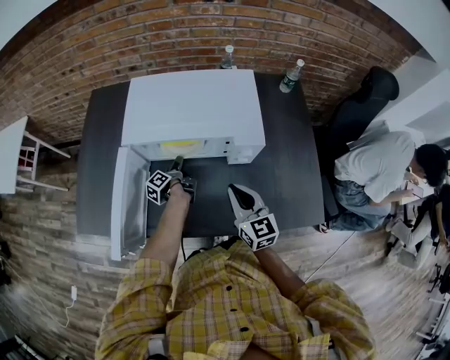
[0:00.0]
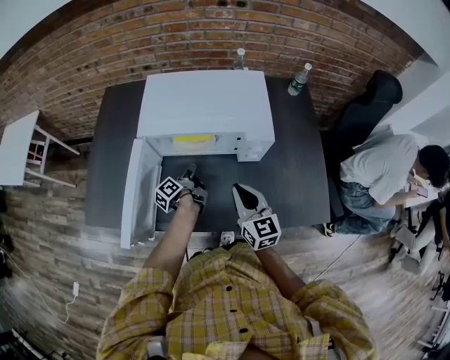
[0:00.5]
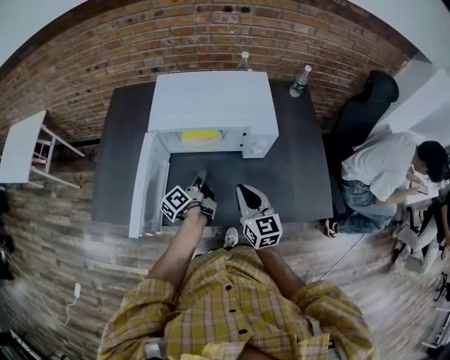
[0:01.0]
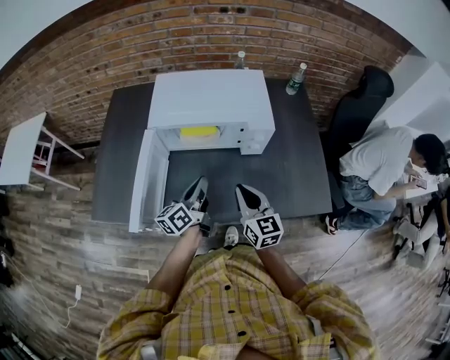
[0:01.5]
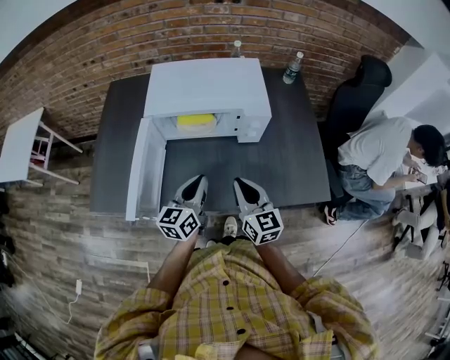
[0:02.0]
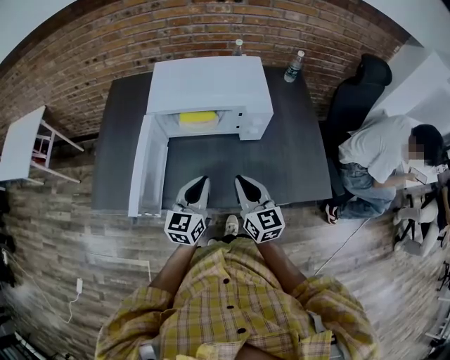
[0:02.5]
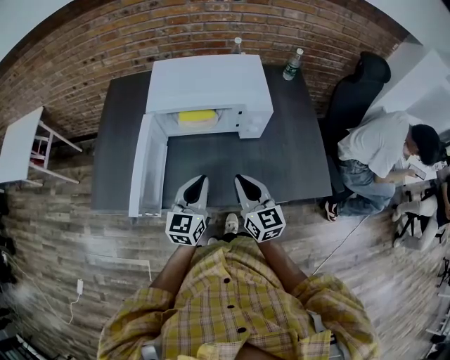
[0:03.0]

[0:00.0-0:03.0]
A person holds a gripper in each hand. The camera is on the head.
0:00.0 to 0:01.5: The right gripper ends up approximately 10 cm from where it was.

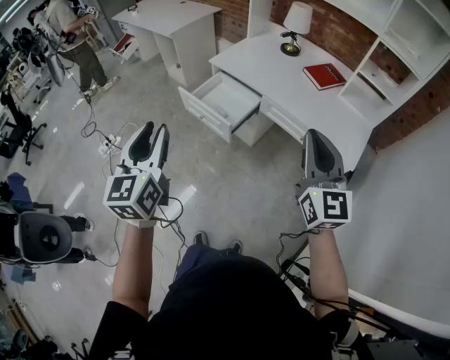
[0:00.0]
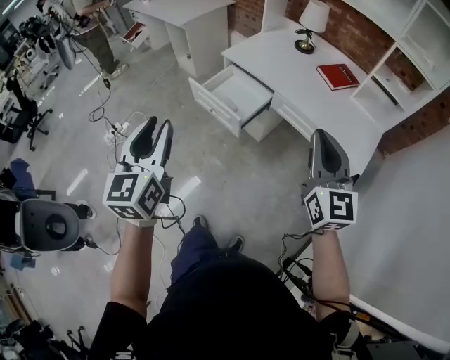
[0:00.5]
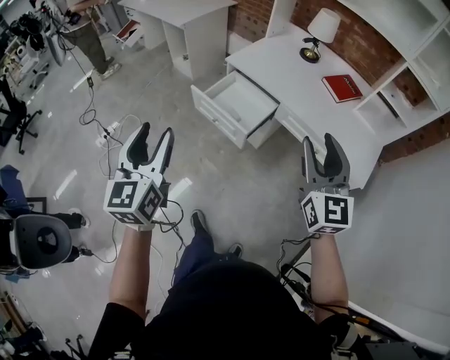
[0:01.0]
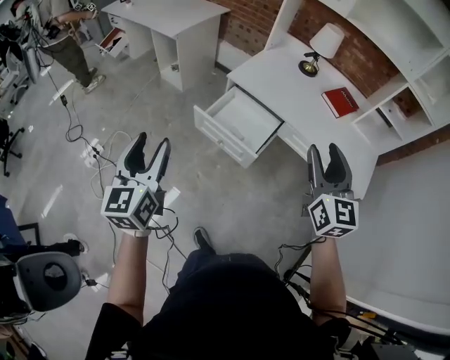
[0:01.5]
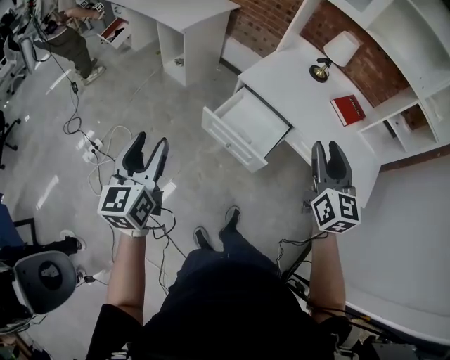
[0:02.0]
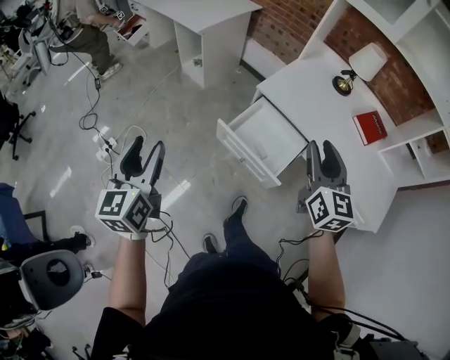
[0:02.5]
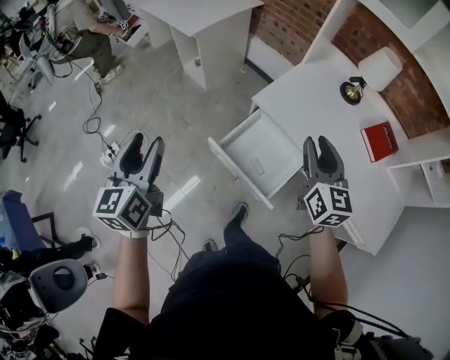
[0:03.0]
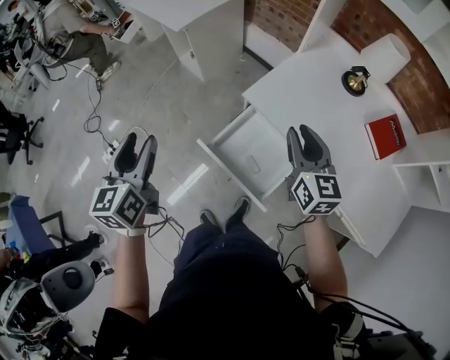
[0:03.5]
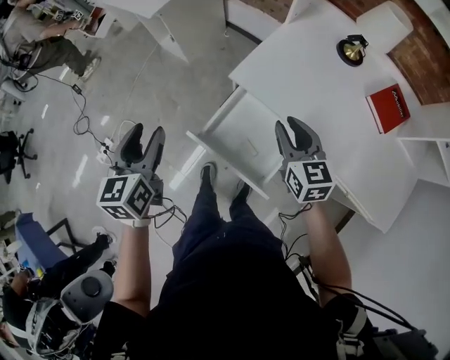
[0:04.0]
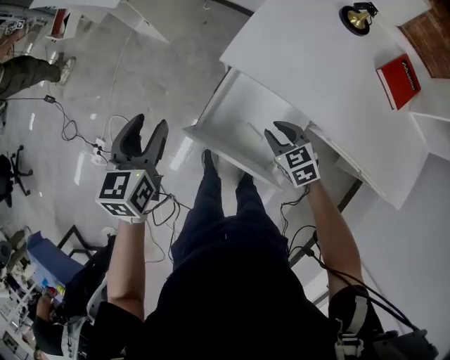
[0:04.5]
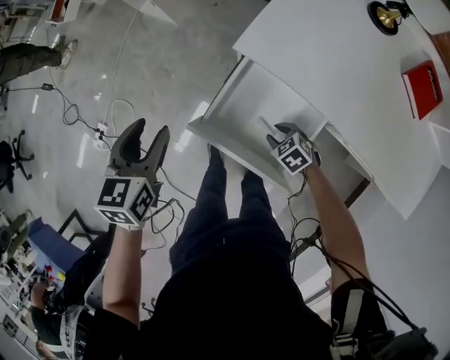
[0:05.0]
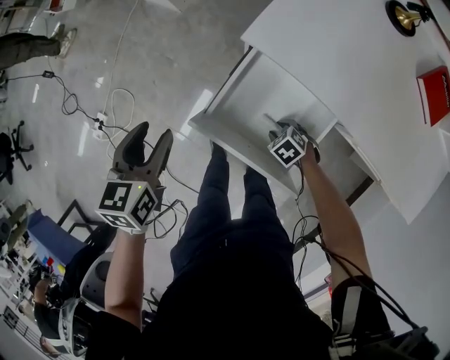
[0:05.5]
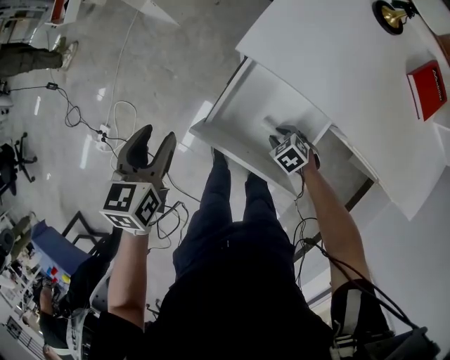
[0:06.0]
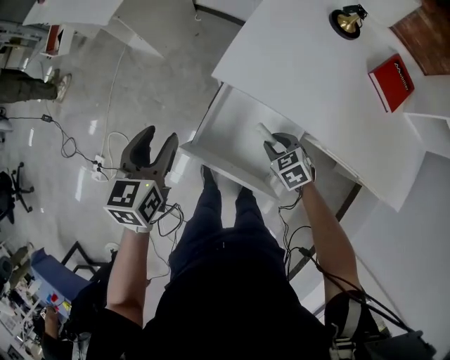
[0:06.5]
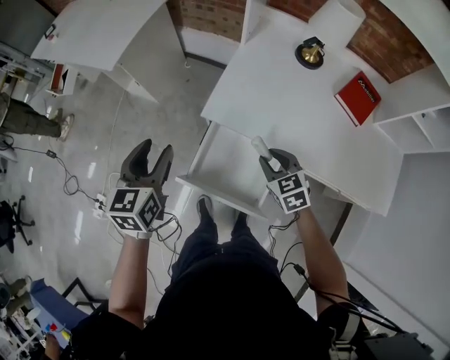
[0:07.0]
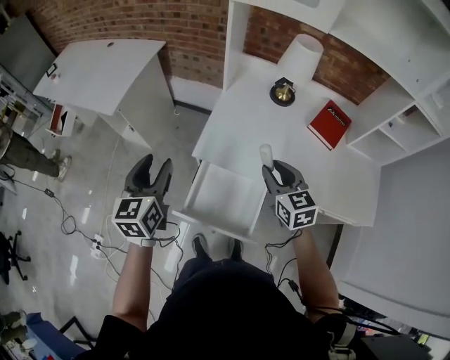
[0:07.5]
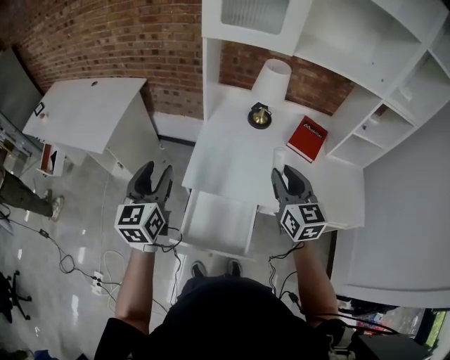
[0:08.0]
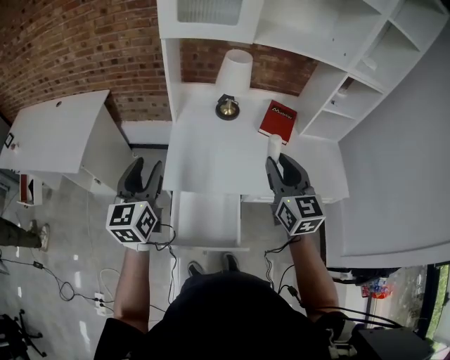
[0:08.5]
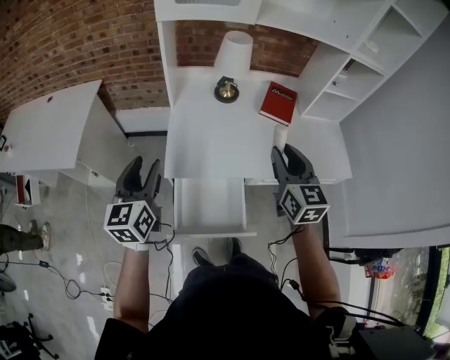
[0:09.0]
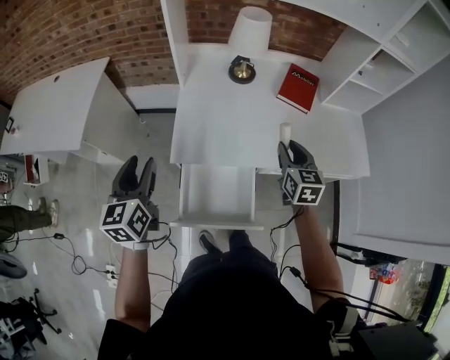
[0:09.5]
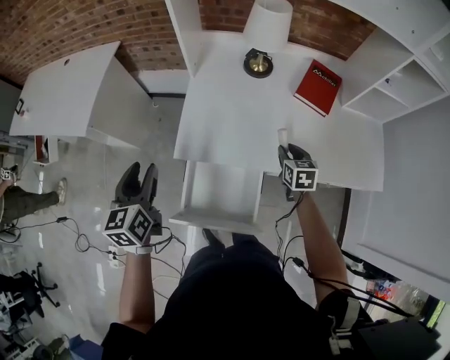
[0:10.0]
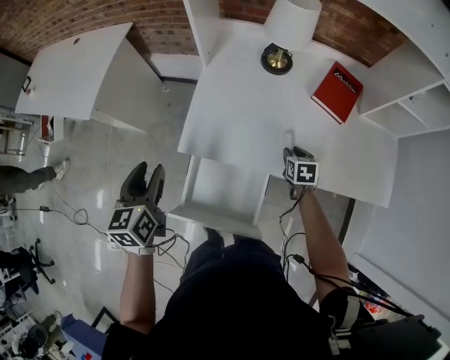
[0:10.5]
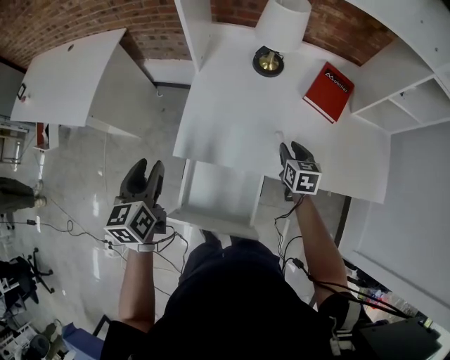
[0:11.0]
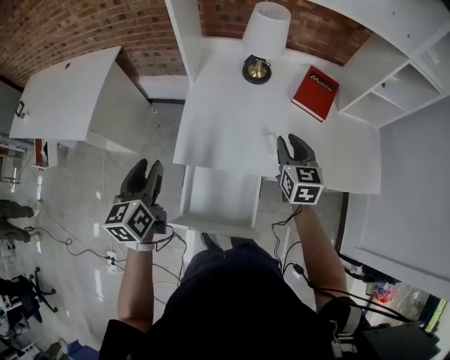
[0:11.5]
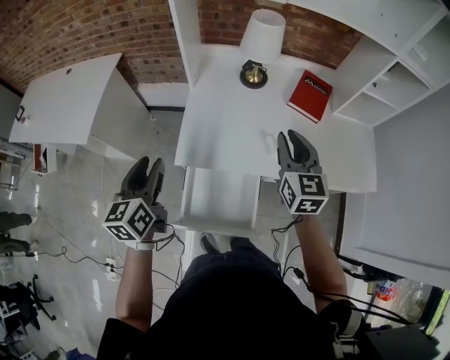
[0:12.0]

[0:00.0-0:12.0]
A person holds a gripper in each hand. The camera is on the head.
0:00.0 to 0:02.0: The left gripper goes approximately 35 cm to the left and forward, and opens its fingers; the right gripper is displaced forward and to the left by approximately 35 cm, and opens up.
0:02.0 to 0:04.0: The left gripper is displaced forward and to the right by roughly 35 cm, while the right gripper is displaced forward and downward by roughly 40 cm, and swivels some 30 degrees.
0:04.0 to 0:06.0: The left gripper goes approximately 15 cm downward, and changes its angle by approximately 20 degrees. The right gripper moves downward, roughly 35 cm, and tips its fingers downward by some 50 degrees.
0:06.0 to 0:08.0: The left gripper is displaced upward by roughly 30 cm, and angles its fingers upward, by roughly 30 degrees. The right gripper shifts approximately 60 cm upward, and tips its fingers upward by about 60 degrees.
0:08.0 to 0:10.0: The left gripper travels downward by roughly 10 cm, while the right gripper heads downward, covering about 30 cm, and points its fingers approximately 30 degrees further downward.
0:10.0 to 0:12.0: The right gripper is displaced upward by some 20 cm, and rotates some 30 degrees.

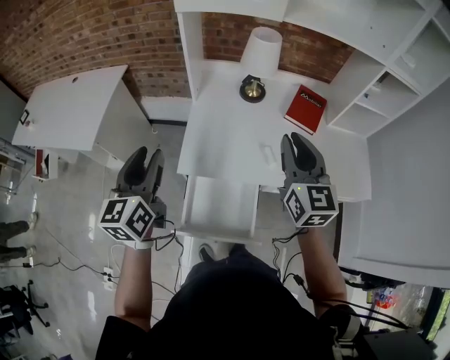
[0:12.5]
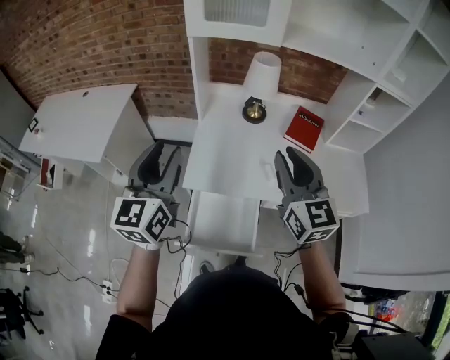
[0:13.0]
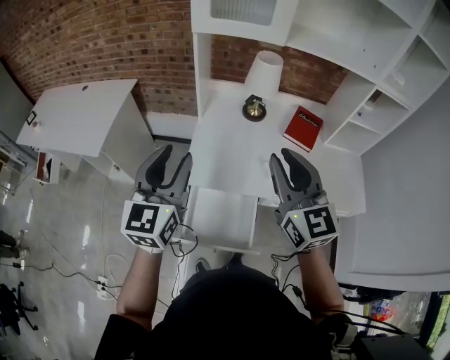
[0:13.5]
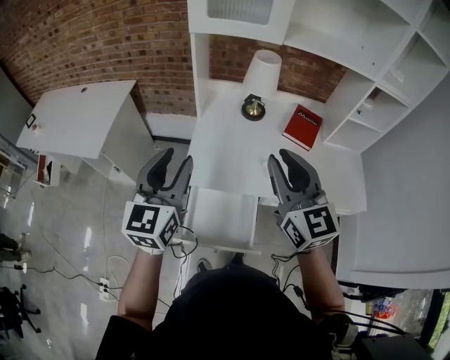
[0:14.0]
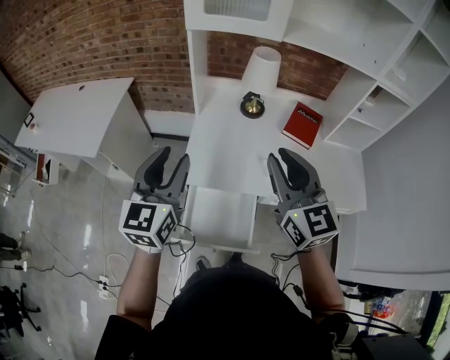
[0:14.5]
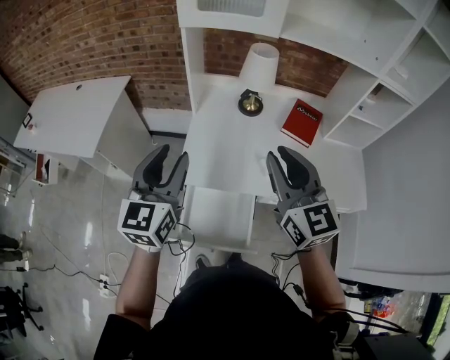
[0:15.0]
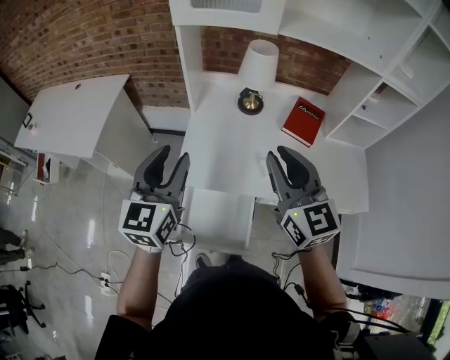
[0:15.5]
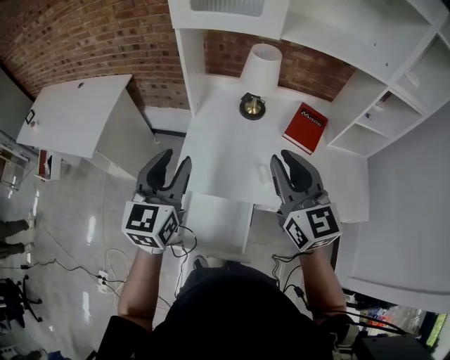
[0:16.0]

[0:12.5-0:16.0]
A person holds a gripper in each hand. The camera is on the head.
0:12.5 to 0:14.5: The right gripper heads upward, to the left and backward, covering some 10 cm, while the left gripper heads to the right, covering approximately 5 cm.
0:14.5 to 0:16.0: The left gripper changes place by approximately 5 cm. Meanwhile the right gripper moves forward, about 5 cm.

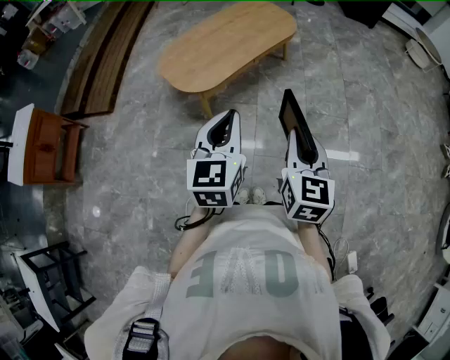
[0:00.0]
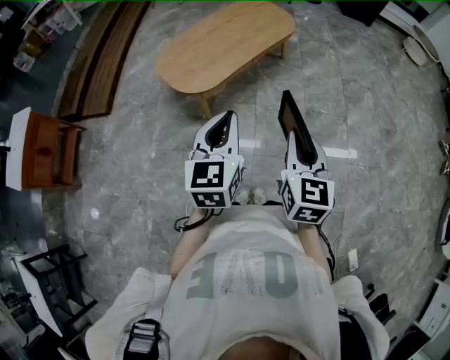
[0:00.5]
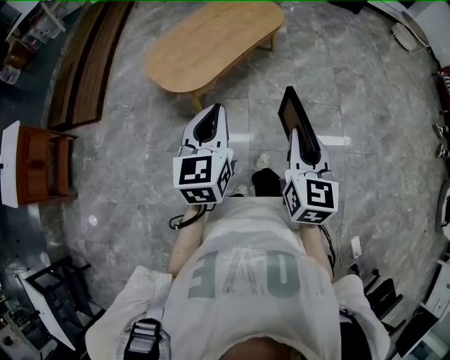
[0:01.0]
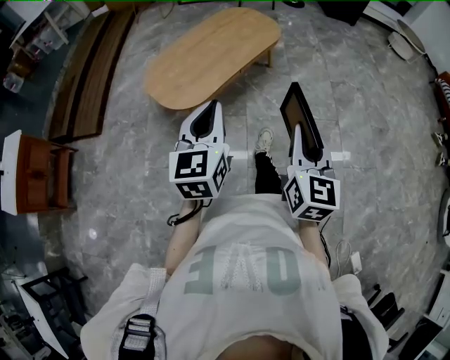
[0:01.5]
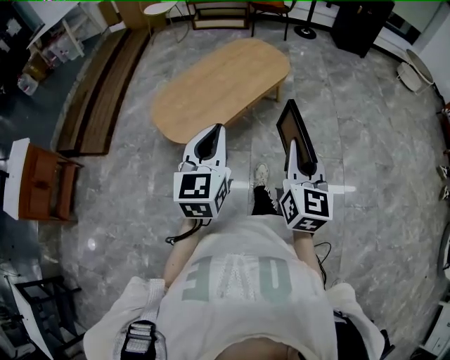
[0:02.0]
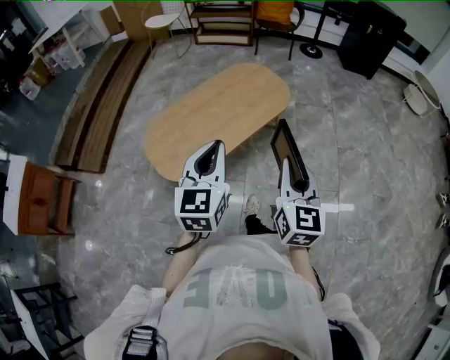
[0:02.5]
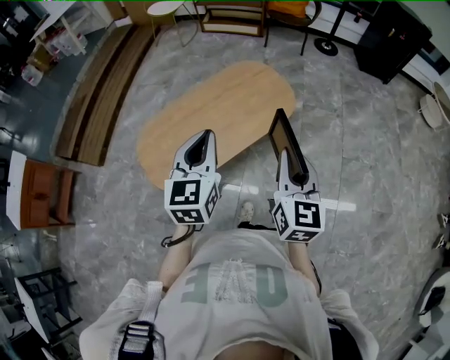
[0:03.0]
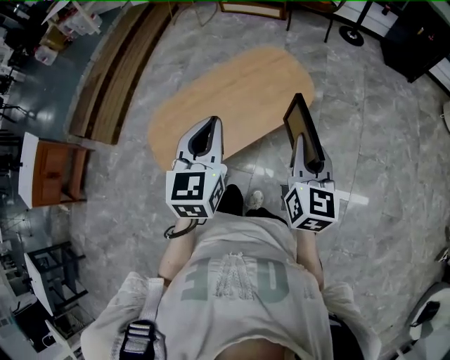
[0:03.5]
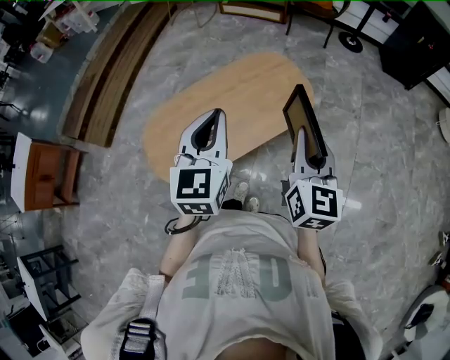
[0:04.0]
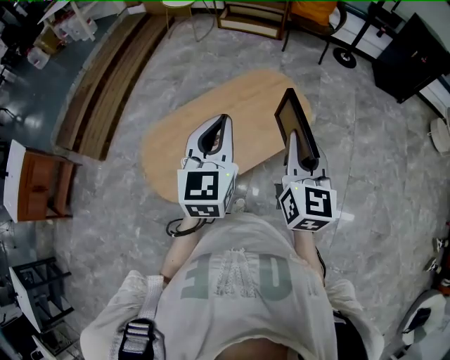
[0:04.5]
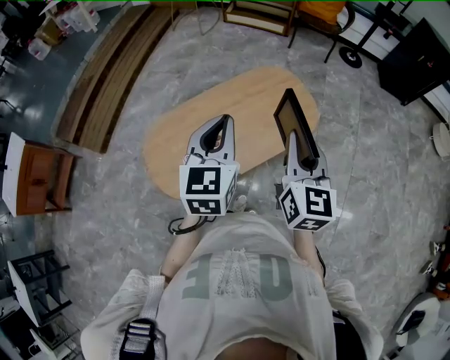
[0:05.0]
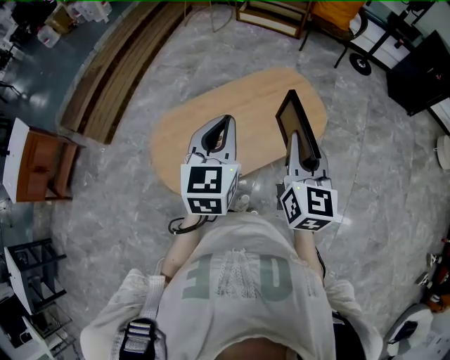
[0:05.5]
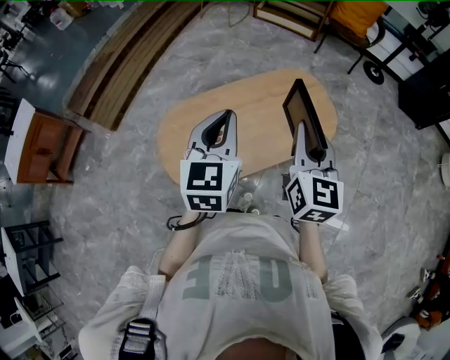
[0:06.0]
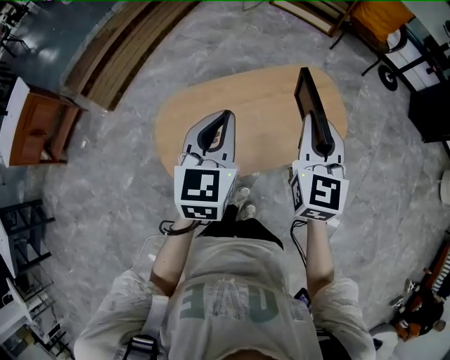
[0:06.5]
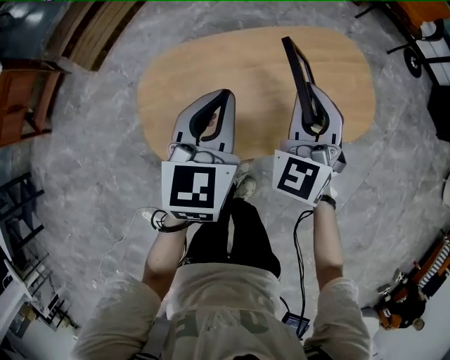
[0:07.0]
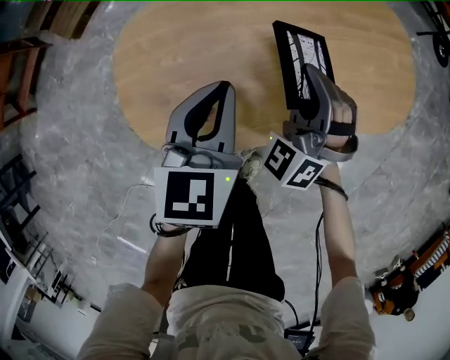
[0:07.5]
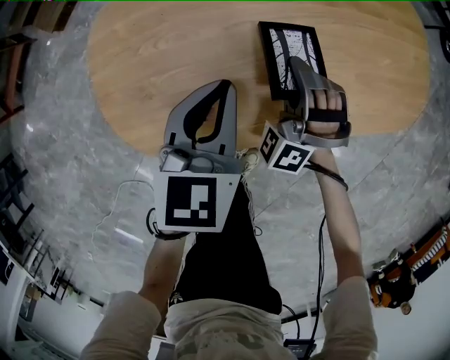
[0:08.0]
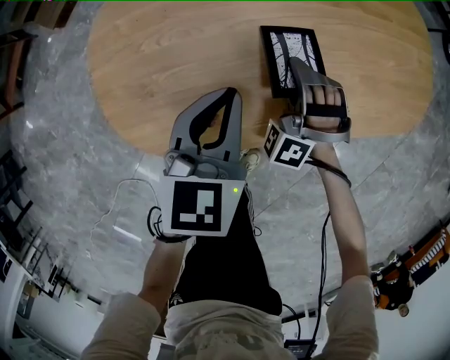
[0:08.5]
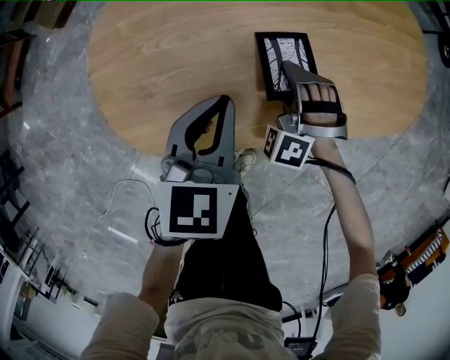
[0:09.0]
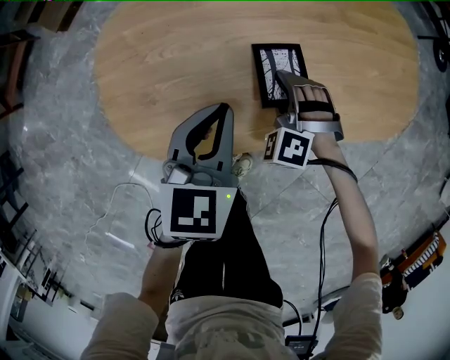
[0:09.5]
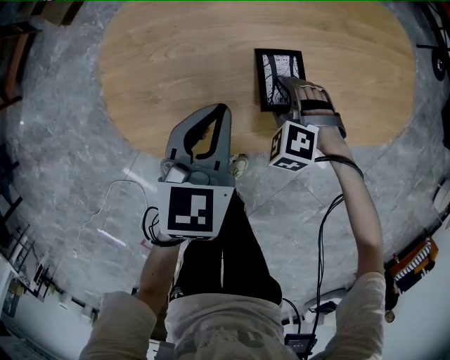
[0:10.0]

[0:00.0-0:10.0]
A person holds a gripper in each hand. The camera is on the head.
0:00.0 to 0:02.0: The grippers both shift forward by roughly 15 cm.
0:02.0 to 0:04.0: Both grippers are carried forward, about 40 cm.
0:04.0 to 0:06.0: Both grippers move to the left and forward, about 15 cm.
0:06.0 to 0:08.0: The two grippers go some 50 cm downward. The right gripper rotates around the line of its fingers by approximately 90 degrees, counterclockwise from behind; the left gripper rotates some 20 degrees.
0:08.0 to 0:10.0: The right gripper moves approximately 5 cm, points its fingers approximately 40 degrees further downward, and opens.
